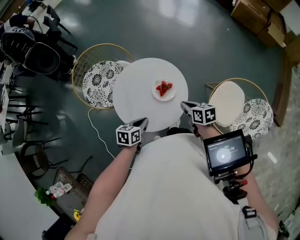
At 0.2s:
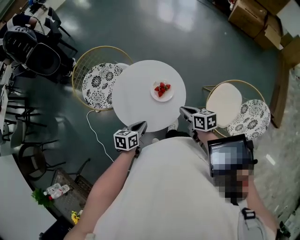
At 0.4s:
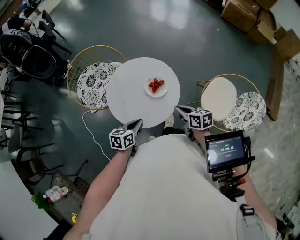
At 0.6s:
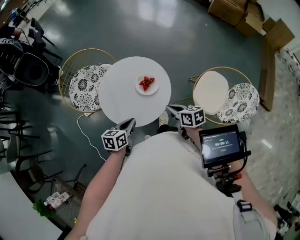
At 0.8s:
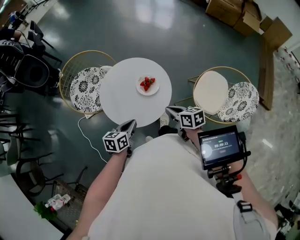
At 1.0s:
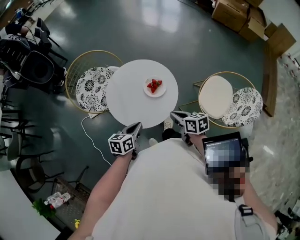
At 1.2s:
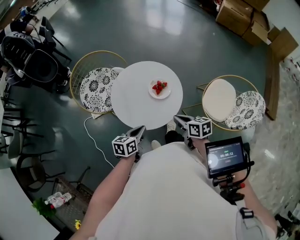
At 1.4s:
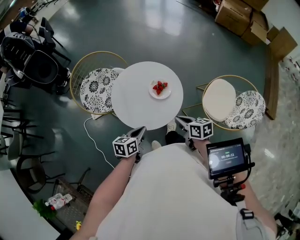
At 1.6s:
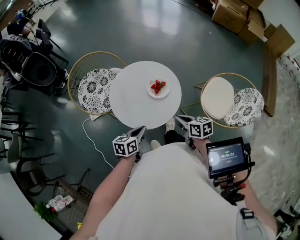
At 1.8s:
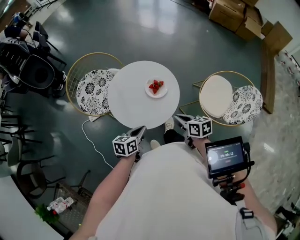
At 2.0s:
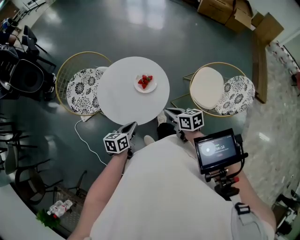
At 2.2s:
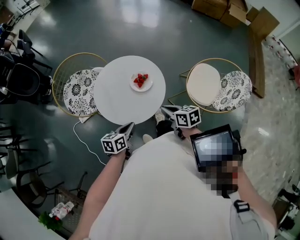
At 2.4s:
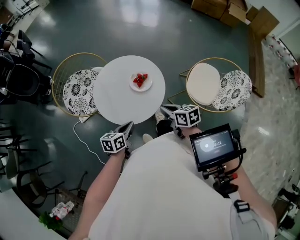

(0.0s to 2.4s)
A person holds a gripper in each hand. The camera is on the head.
0.0s - 1.2s: The right gripper is displaced backward by approximately 10 cm. Meanwhile the left gripper heads backward, covering approximately 5 cm.
1.2s - 2.4s: The grippers make only small movements.

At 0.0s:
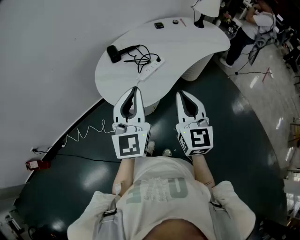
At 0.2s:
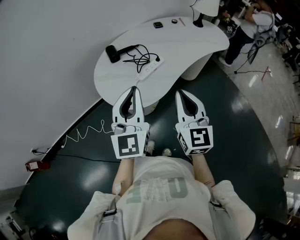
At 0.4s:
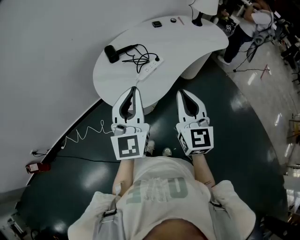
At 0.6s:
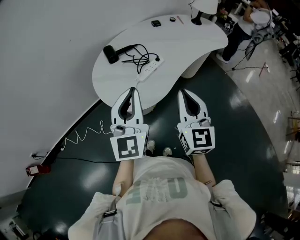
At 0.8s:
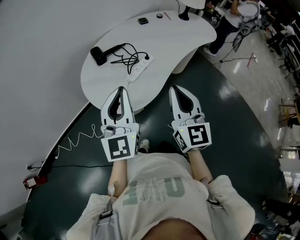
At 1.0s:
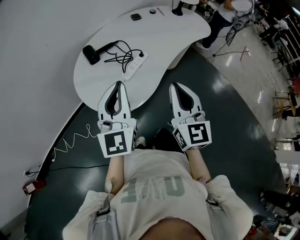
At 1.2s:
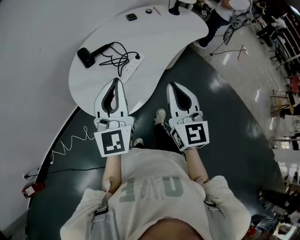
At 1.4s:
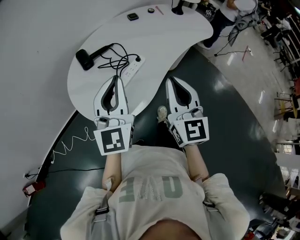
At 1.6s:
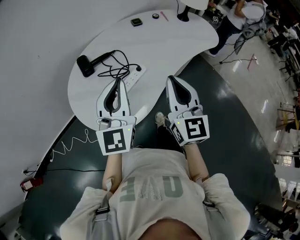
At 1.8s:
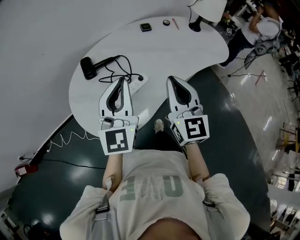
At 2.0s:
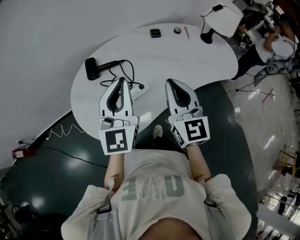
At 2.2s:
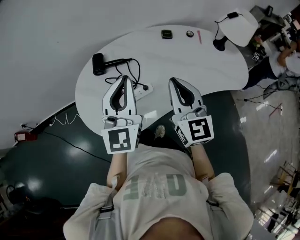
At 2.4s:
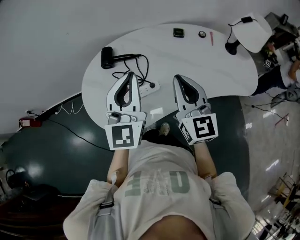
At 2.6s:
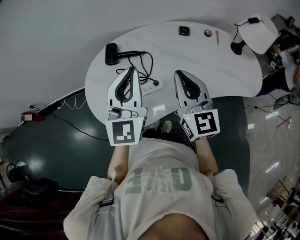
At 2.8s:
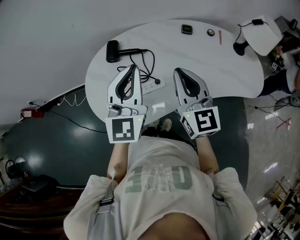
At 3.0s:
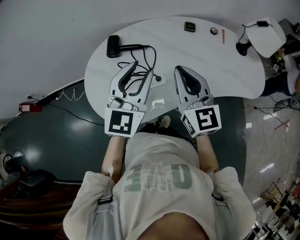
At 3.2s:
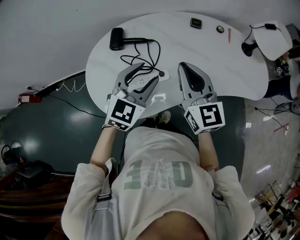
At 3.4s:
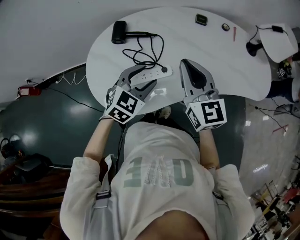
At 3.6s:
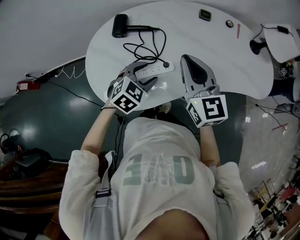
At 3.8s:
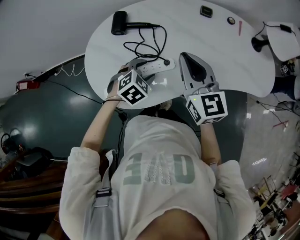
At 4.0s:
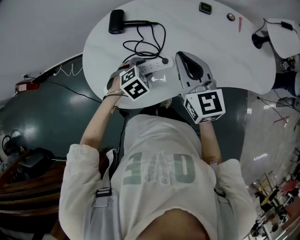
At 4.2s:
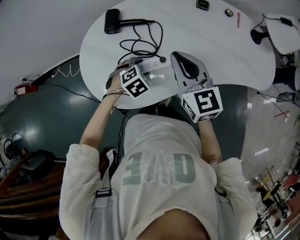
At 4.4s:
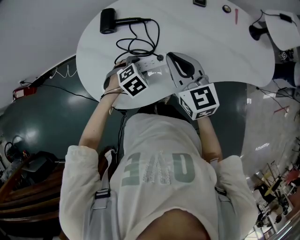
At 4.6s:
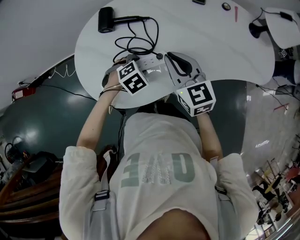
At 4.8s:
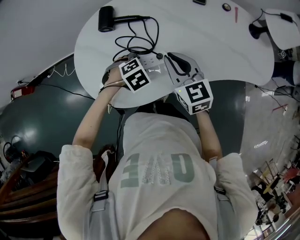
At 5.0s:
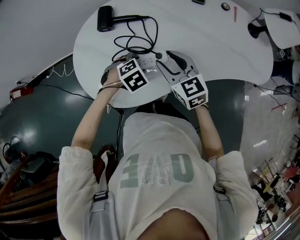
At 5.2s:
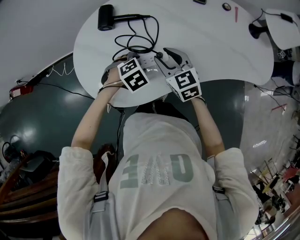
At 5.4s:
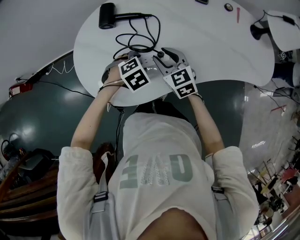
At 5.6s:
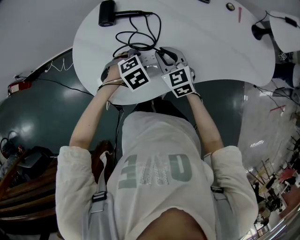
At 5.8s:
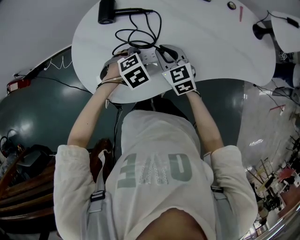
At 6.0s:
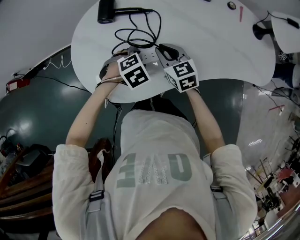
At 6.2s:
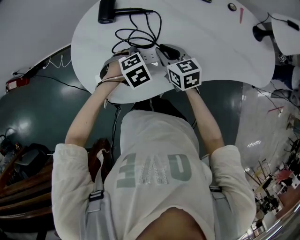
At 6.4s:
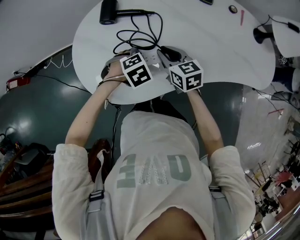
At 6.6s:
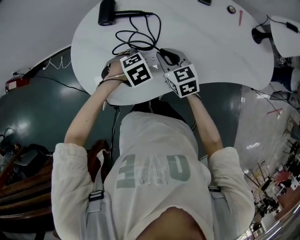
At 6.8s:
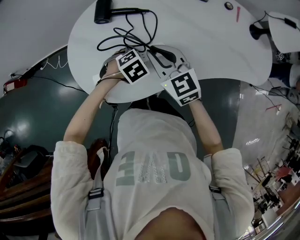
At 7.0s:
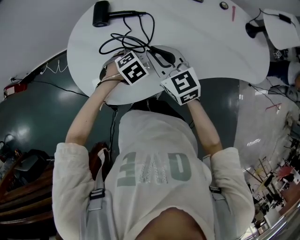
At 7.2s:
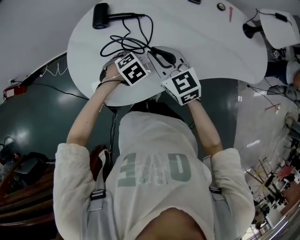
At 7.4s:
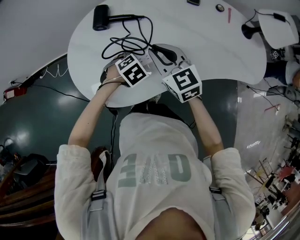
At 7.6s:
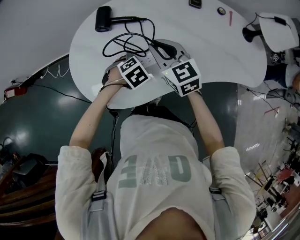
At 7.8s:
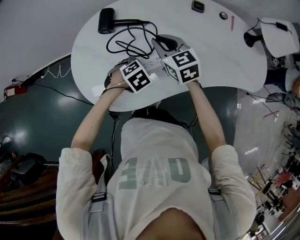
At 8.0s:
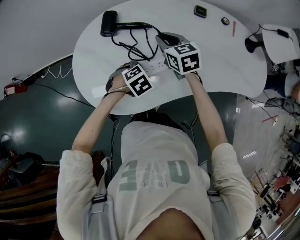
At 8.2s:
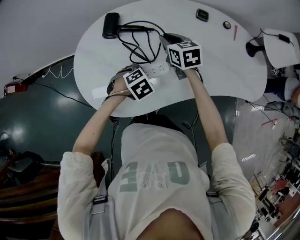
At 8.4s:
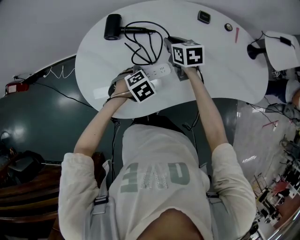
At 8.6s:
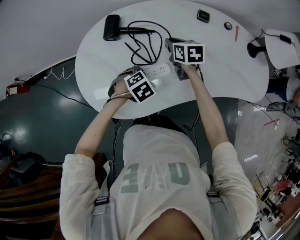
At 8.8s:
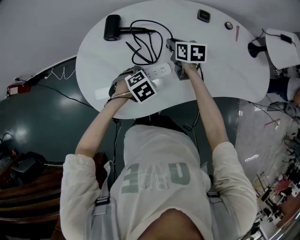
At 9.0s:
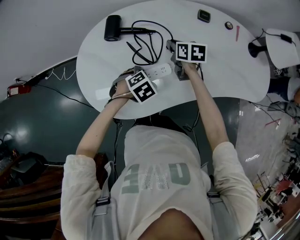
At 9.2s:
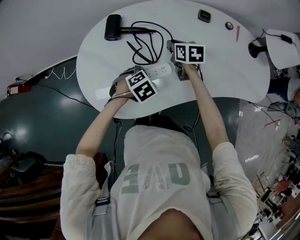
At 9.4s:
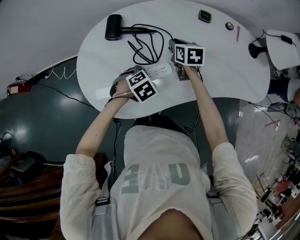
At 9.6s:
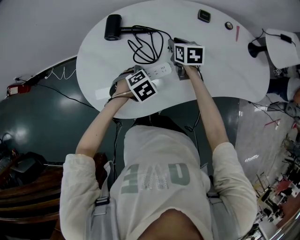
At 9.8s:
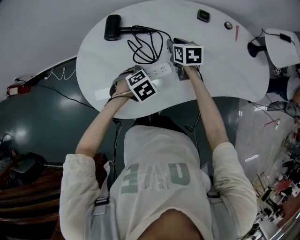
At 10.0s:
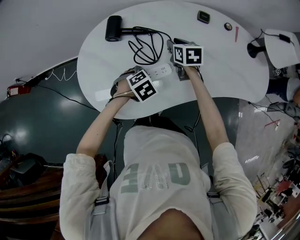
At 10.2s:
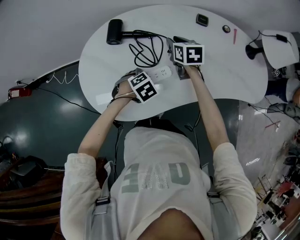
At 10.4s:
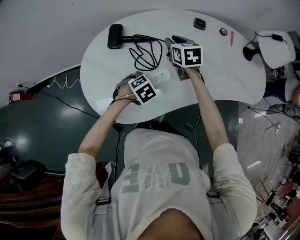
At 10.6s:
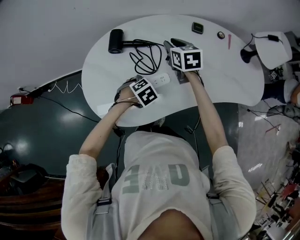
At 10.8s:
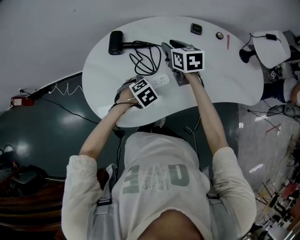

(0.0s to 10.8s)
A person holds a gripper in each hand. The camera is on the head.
0.0s - 1.6s: The two grippers go roughly 15 cm forward.
1.6s - 3.0s: The right gripper changes place by some 15 cm, and rotates roughly 40 degrees; the left gripper changes place by some 15 cm, and opens its fingers.
3.0s - 4.6s: The left gripper shifts about 30 cm downward, points its fingers some 70 degrees further downward, and opens its fingers, while the right gripper goes about 15 cm downward, and turns by some 20 degrees.
4.6s - 6.2s: The right gripper is displaced downward by approximately 10 cm, and opens, then closes once more.
6.2s - 7.8s: The right gripper goes some 5 cm upward.
7.8s - 9.2s: The right gripper travels downward and forward by roughly 10 cm, and changes its angle by approximately 30 degrees.
9.2s - 10.8s: The right gripper is displaced upward by about 10 cm.

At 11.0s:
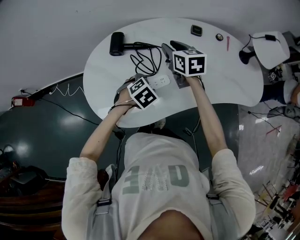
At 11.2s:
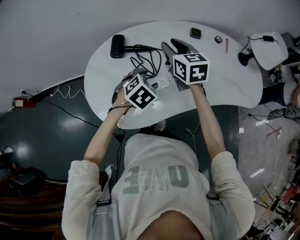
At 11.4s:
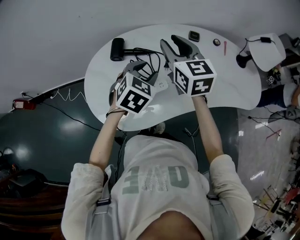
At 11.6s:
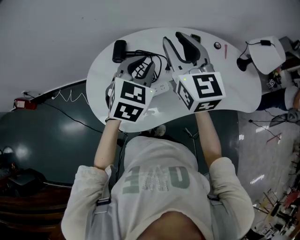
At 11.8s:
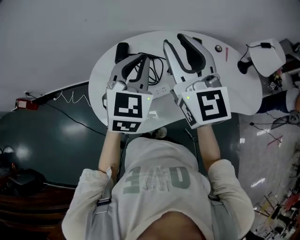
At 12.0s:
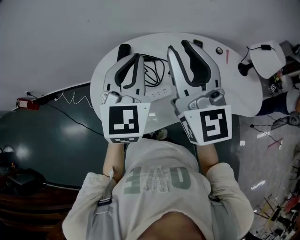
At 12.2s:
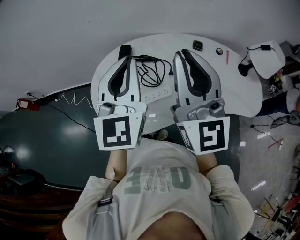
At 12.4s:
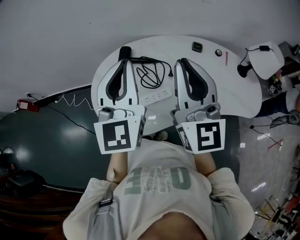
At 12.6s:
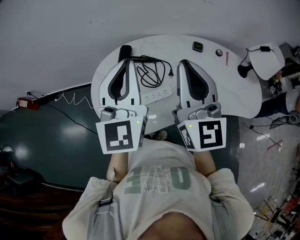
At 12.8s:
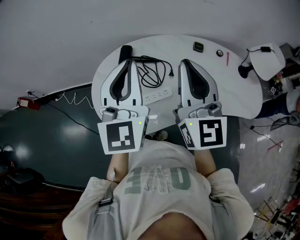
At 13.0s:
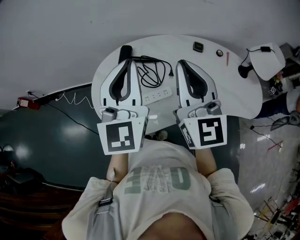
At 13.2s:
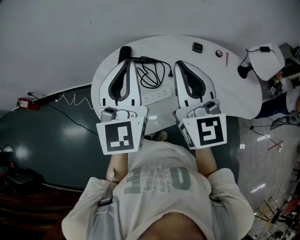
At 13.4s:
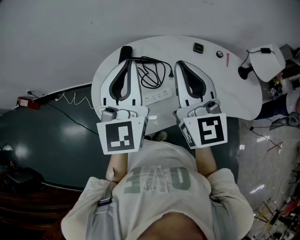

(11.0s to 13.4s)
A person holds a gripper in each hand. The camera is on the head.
11.0s - 12.2s: The right gripper shifts approximately 35 cm upward and backward, angles its fingers upward, by some 50 degrees, and closes up. Meanwhile the left gripper is displaced upward by some 35 cm, tips its fingers upward by some 70 degrees, and closes.
12.2s - 13.4s: The grippers make only small movements.

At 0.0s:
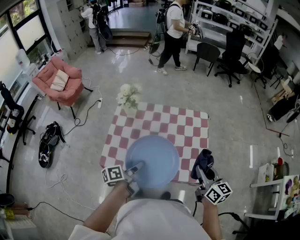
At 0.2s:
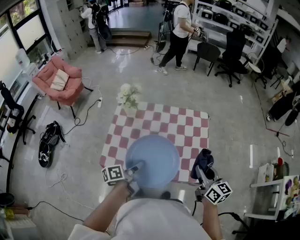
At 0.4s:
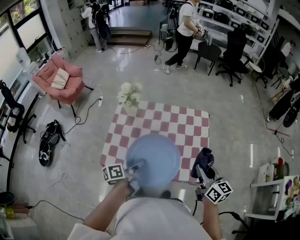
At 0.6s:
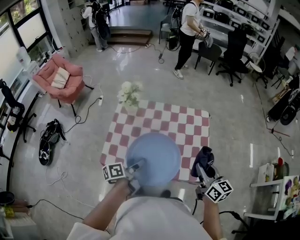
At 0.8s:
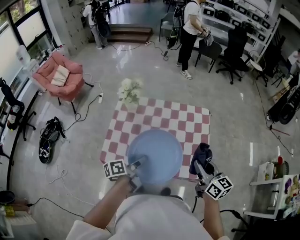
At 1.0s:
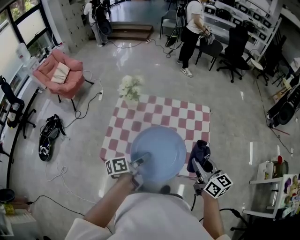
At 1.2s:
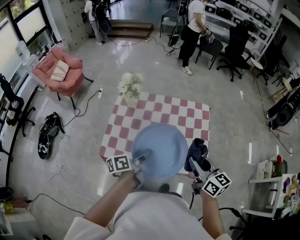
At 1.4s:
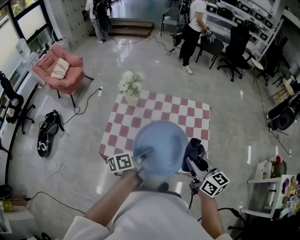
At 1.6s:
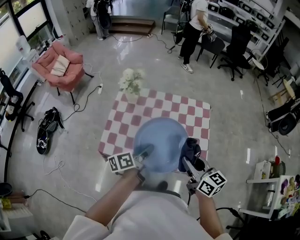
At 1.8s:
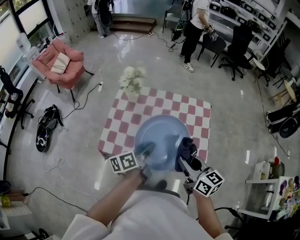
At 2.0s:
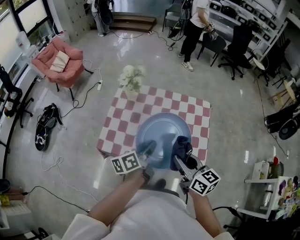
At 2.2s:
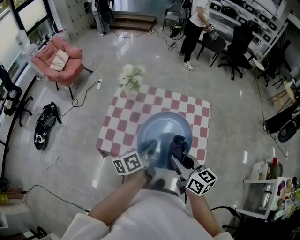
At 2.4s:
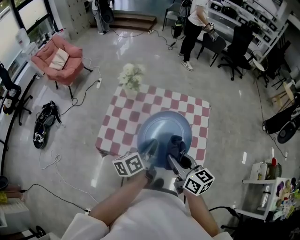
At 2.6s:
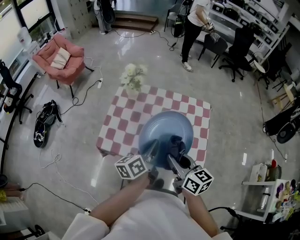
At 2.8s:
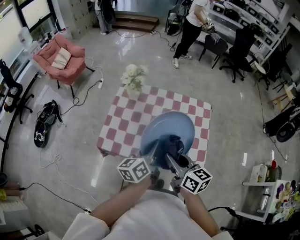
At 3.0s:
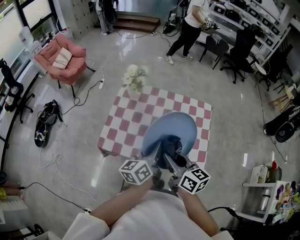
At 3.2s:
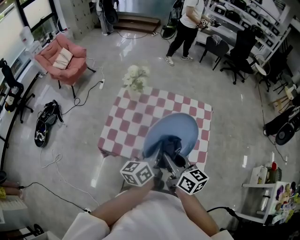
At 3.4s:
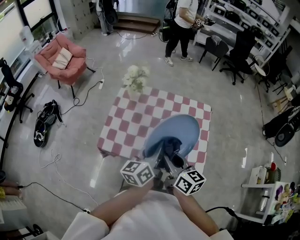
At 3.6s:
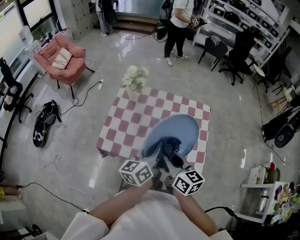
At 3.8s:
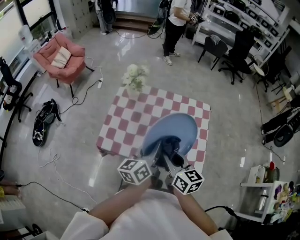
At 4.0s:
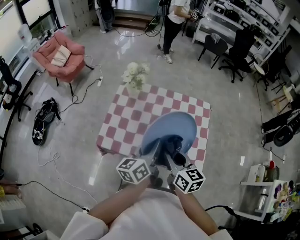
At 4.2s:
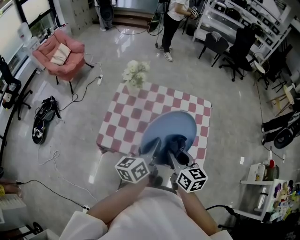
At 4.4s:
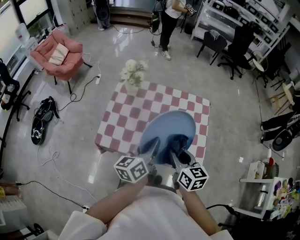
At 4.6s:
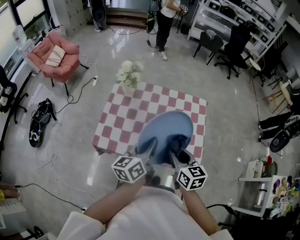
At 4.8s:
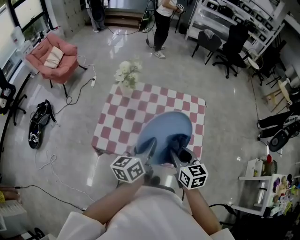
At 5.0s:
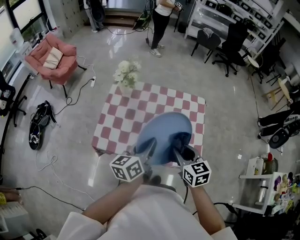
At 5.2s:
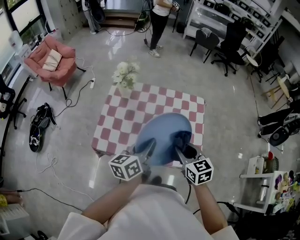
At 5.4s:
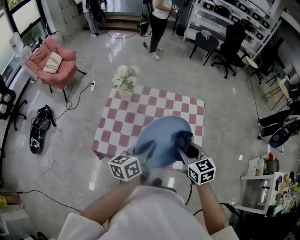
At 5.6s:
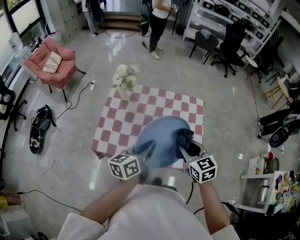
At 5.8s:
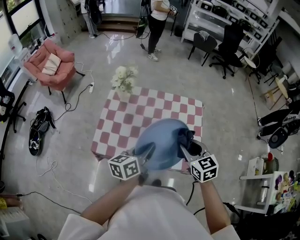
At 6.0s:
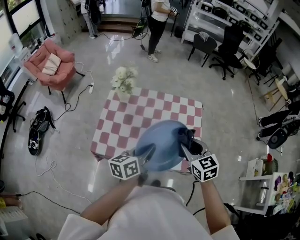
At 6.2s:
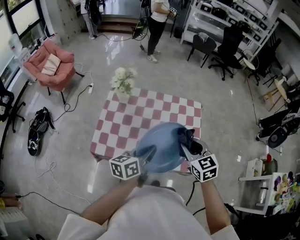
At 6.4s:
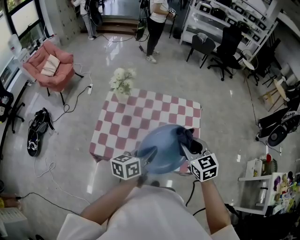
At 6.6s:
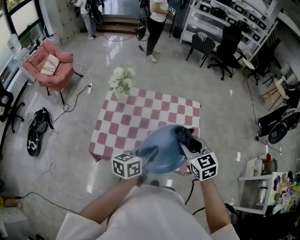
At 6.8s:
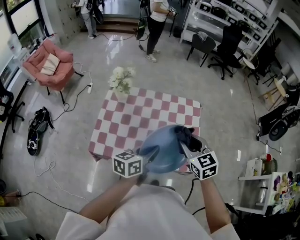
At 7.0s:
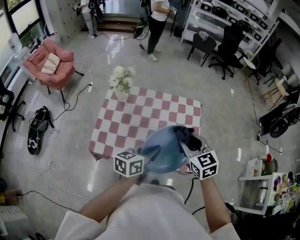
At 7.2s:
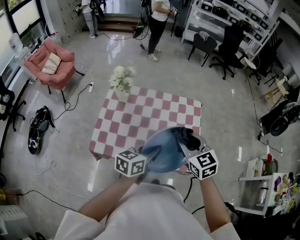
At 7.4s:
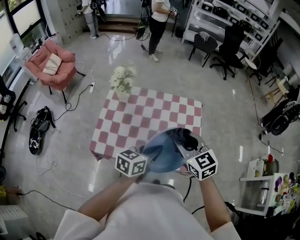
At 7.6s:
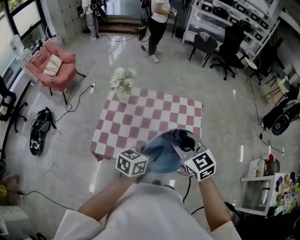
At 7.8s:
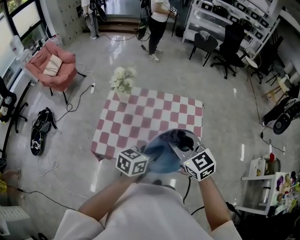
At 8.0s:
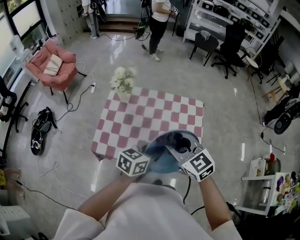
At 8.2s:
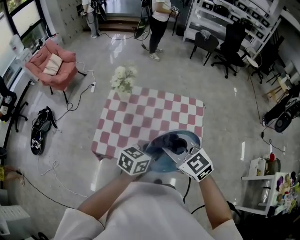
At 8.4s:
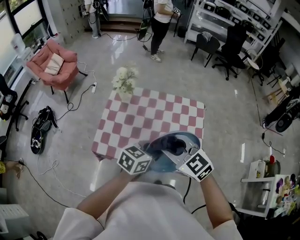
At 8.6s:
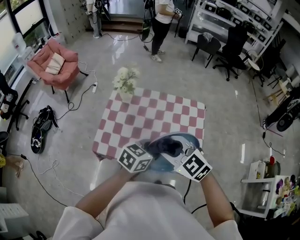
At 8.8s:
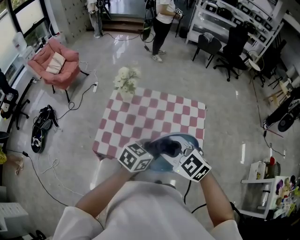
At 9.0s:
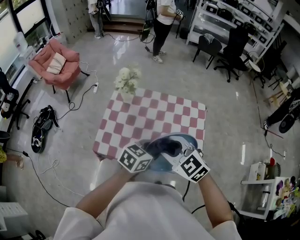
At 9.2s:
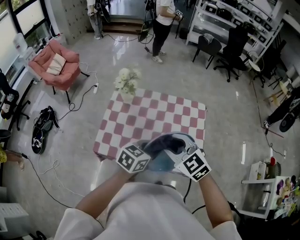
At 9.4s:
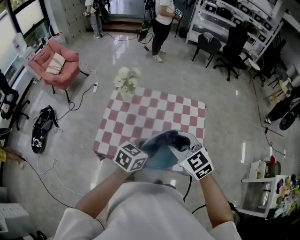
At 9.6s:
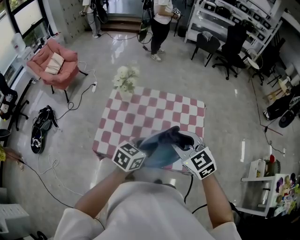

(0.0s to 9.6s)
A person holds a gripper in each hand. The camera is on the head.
0.0s - 1.6s: The right gripper travels to the left by approximately 10 cm.
1.6s - 3.2s: The left gripper shifts approximately 5 cm upward, and turns by some 30 degrees, while the right gripper shifts approximately 10 cm to the left.
3.2s - 4.8s: The right gripper heads to the right, covering some 5 cm, and rotates roughly 30 degrees.
4.8s - 6.4s: The right gripper heads to the right, covering roughly 5 cm.
6.4s - 8.0s: The right gripper heads to the left, covering roughly 10 cm, and changes its angle by about 20 degrees, while the left gripper swivels roughly 20 degrees.
8.0s - 9.6s: The grippers make only small movements.
